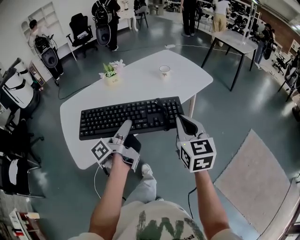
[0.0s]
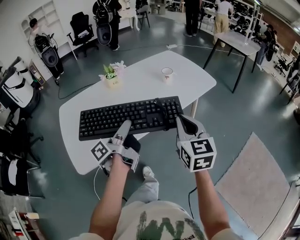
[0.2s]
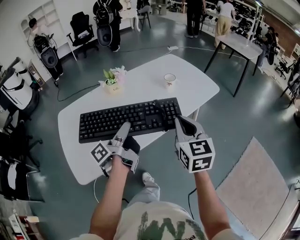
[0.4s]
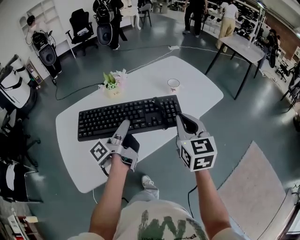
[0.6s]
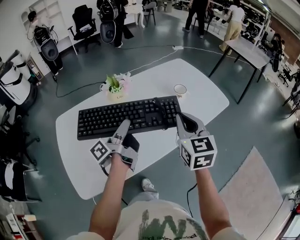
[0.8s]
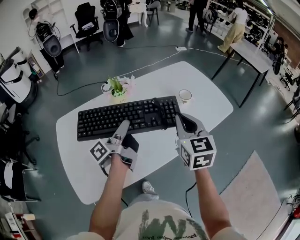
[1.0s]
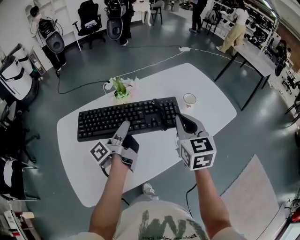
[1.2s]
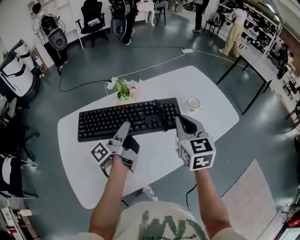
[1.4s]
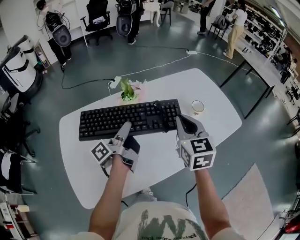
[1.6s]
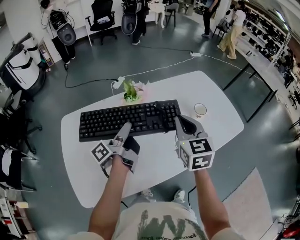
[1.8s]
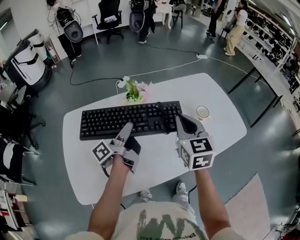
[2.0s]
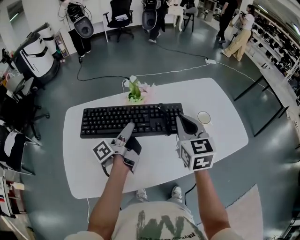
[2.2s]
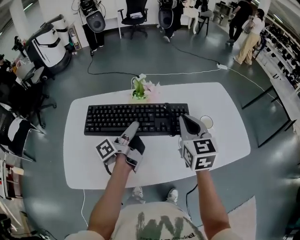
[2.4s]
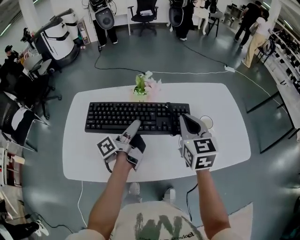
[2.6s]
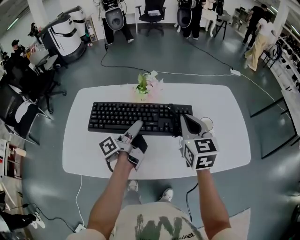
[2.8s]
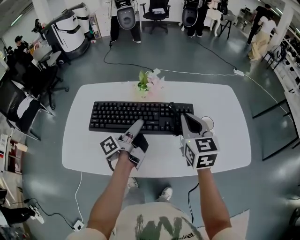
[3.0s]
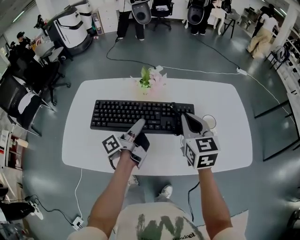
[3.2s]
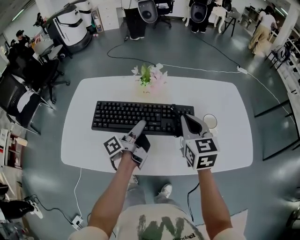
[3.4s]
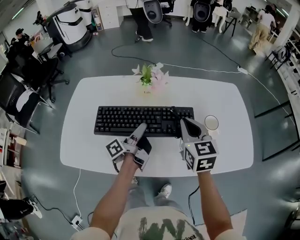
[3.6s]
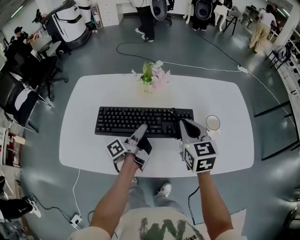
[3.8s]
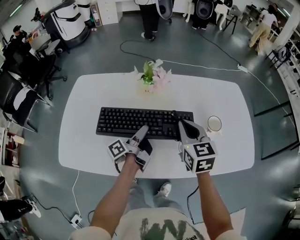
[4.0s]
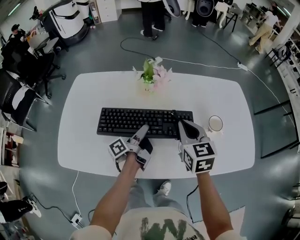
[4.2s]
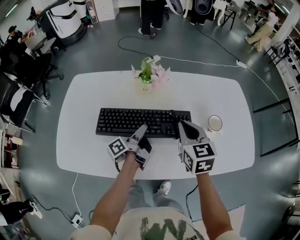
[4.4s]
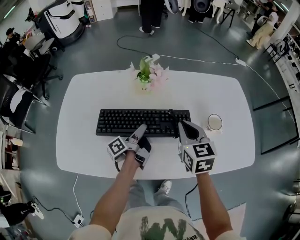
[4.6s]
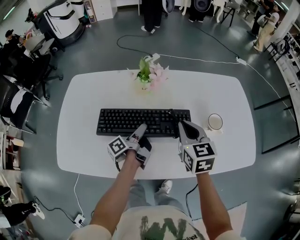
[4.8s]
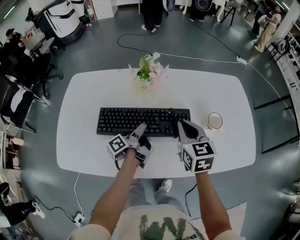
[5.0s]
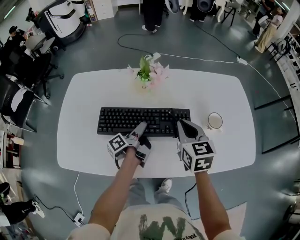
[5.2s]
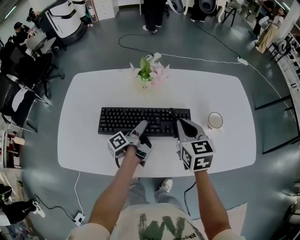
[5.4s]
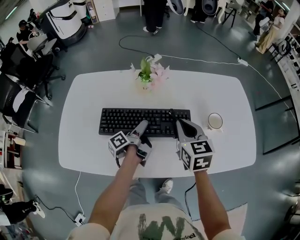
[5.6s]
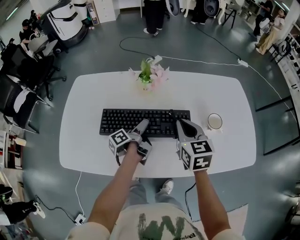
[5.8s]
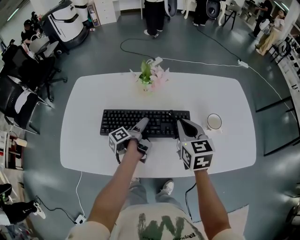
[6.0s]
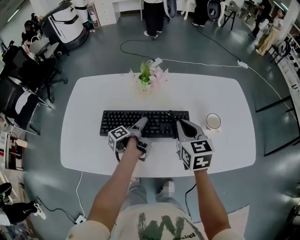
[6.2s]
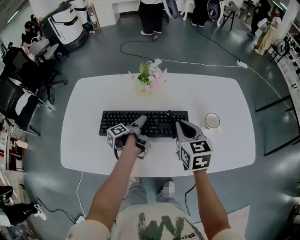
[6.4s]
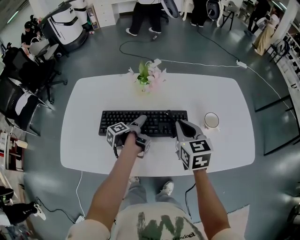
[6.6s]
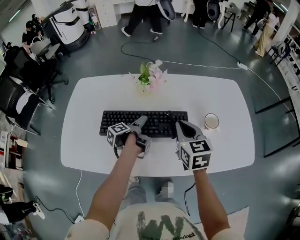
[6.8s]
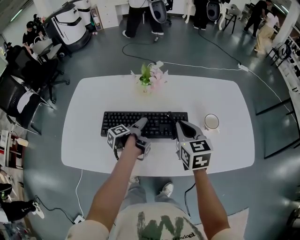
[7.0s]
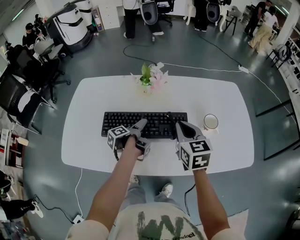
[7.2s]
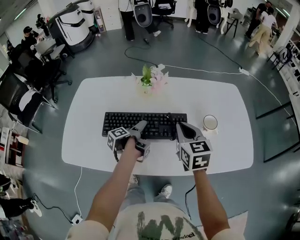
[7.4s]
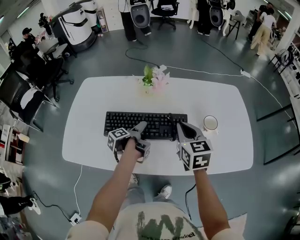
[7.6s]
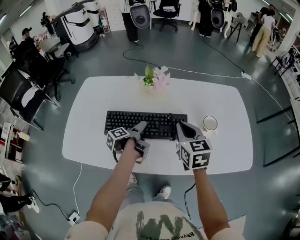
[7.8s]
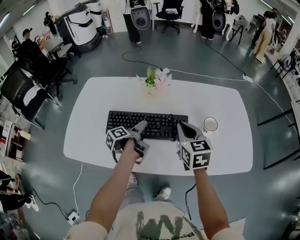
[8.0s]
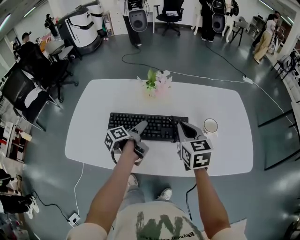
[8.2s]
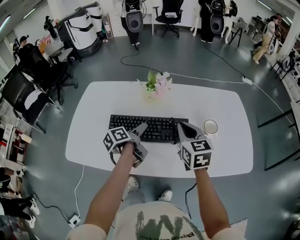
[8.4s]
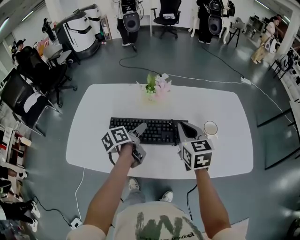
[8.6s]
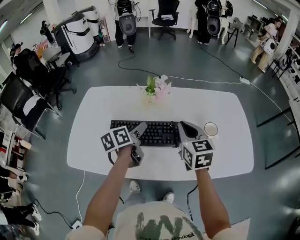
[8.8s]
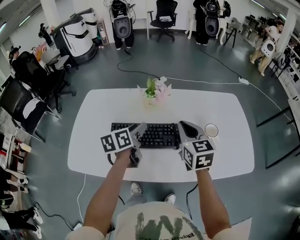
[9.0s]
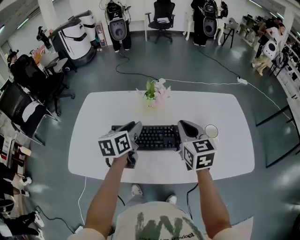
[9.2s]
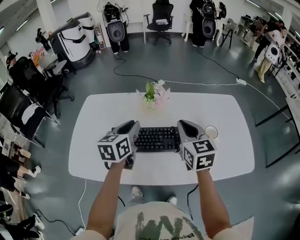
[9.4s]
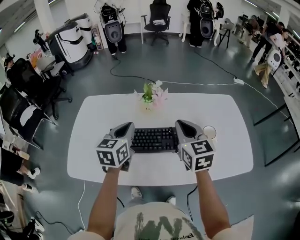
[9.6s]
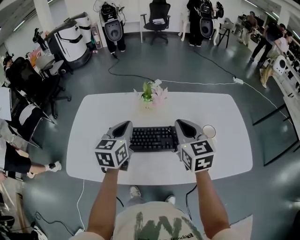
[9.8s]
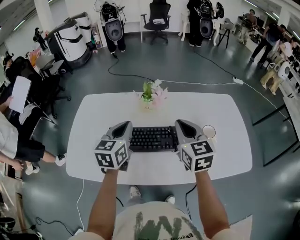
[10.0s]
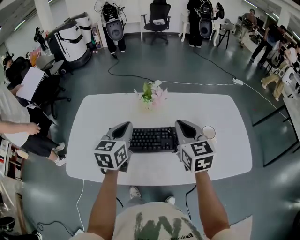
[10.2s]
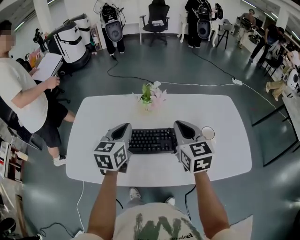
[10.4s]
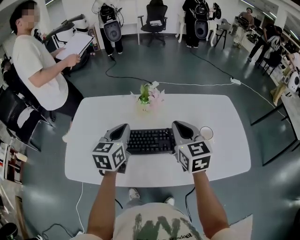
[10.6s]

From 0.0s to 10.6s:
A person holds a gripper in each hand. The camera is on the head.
From 0.0s to 1.6s: The right gripper moves roughly 35 cm.
From 1.6s to 3.0s: The right gripper moves some 5 cm, and swivels roughly 20 degrees.
From 3.0s to 4.6s: The right gripper is displaced downward by some 10 cm.
From 7.6s to 9.0s: The right gripper moves upward, some 5 cm.

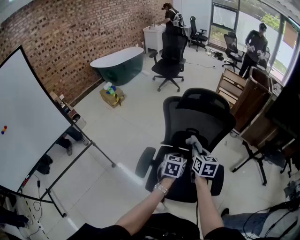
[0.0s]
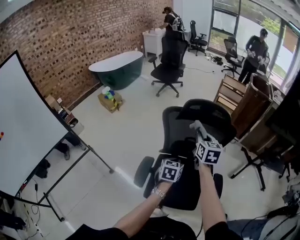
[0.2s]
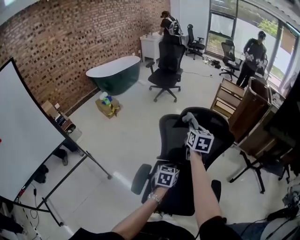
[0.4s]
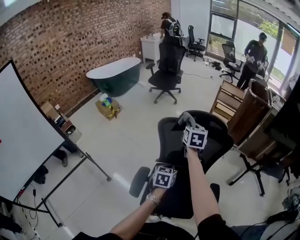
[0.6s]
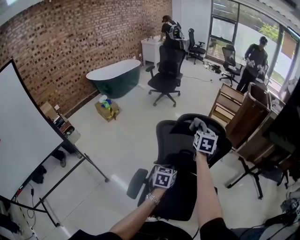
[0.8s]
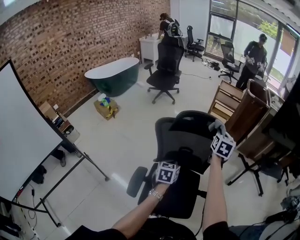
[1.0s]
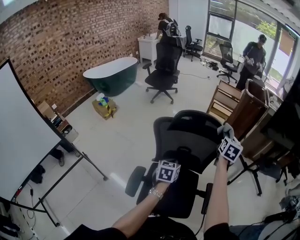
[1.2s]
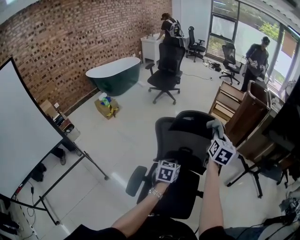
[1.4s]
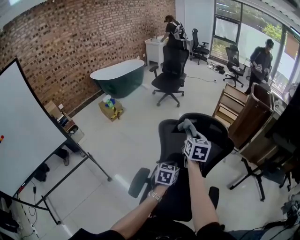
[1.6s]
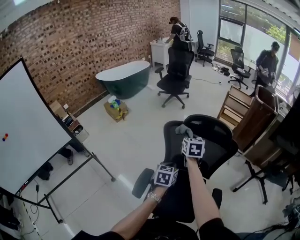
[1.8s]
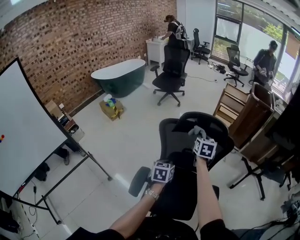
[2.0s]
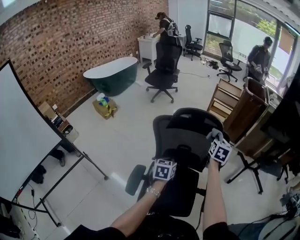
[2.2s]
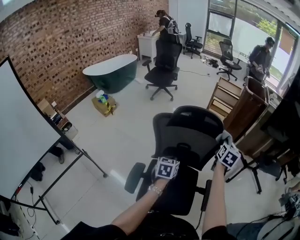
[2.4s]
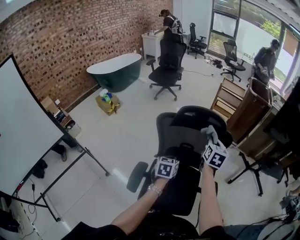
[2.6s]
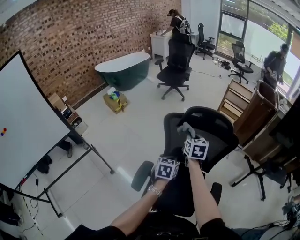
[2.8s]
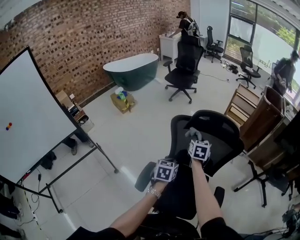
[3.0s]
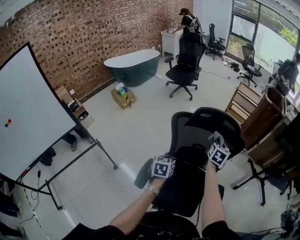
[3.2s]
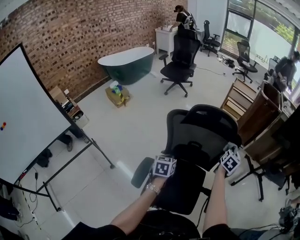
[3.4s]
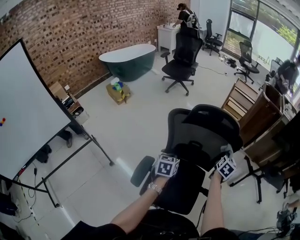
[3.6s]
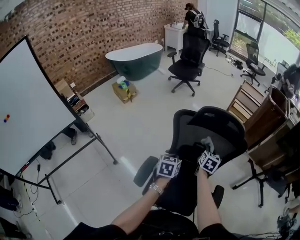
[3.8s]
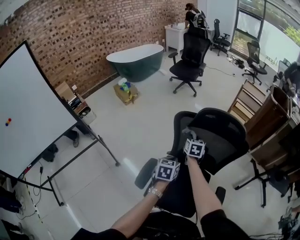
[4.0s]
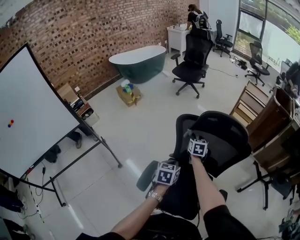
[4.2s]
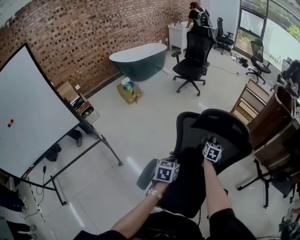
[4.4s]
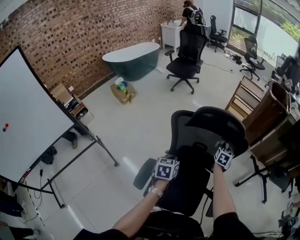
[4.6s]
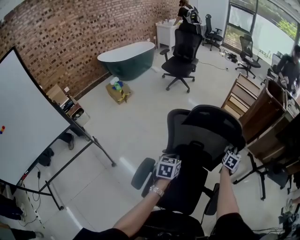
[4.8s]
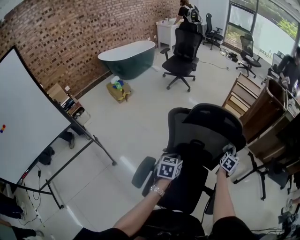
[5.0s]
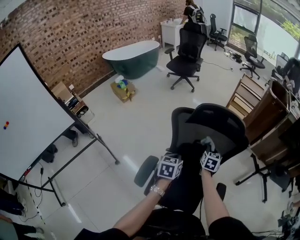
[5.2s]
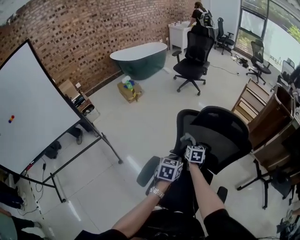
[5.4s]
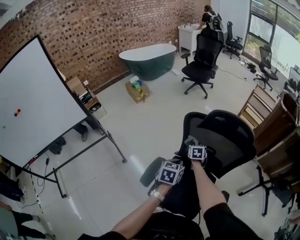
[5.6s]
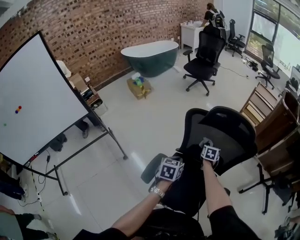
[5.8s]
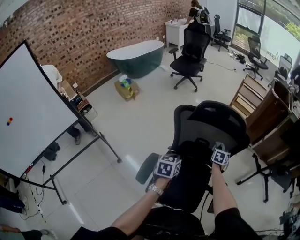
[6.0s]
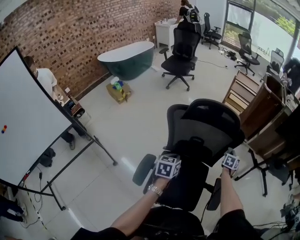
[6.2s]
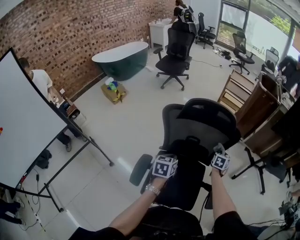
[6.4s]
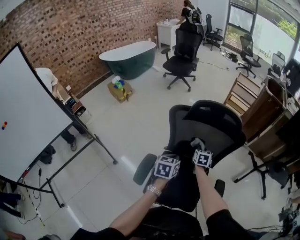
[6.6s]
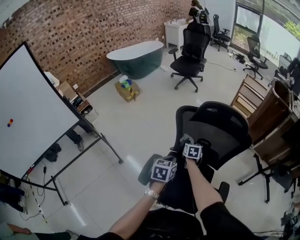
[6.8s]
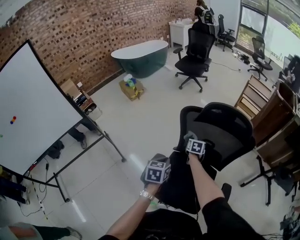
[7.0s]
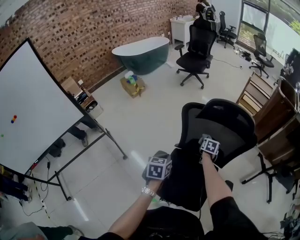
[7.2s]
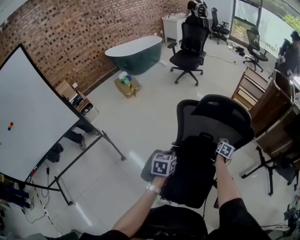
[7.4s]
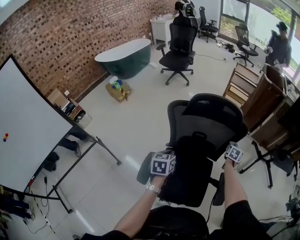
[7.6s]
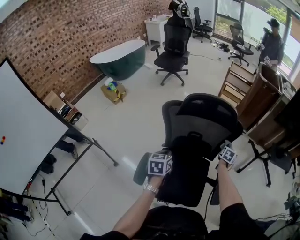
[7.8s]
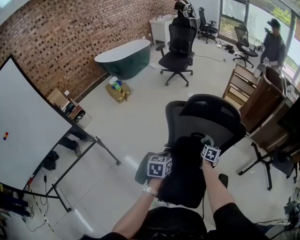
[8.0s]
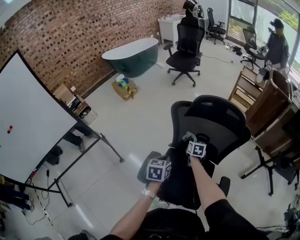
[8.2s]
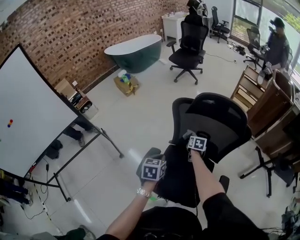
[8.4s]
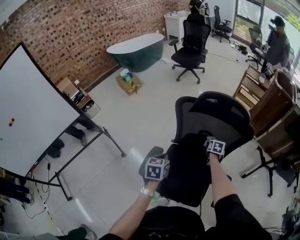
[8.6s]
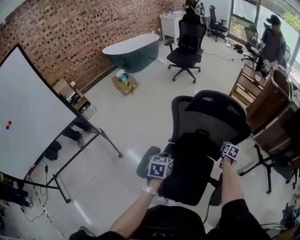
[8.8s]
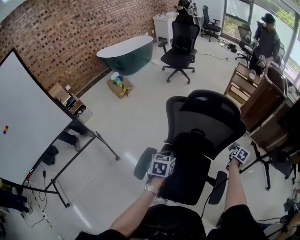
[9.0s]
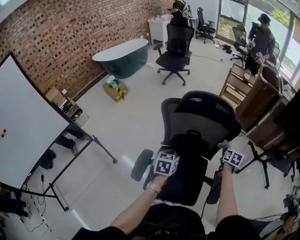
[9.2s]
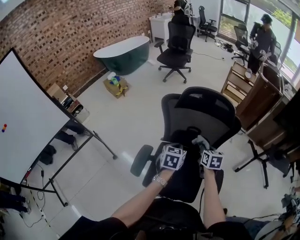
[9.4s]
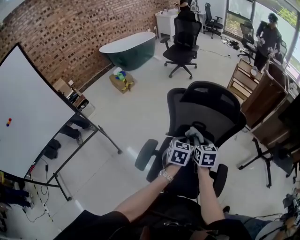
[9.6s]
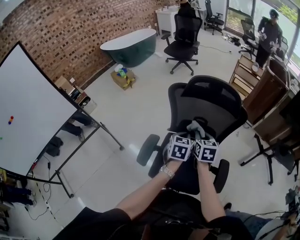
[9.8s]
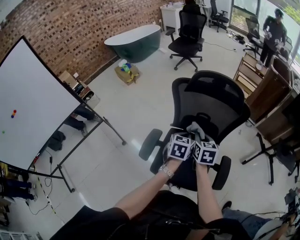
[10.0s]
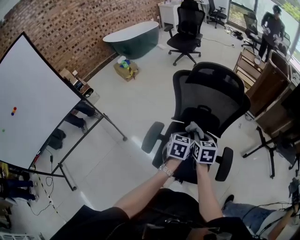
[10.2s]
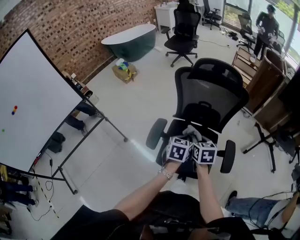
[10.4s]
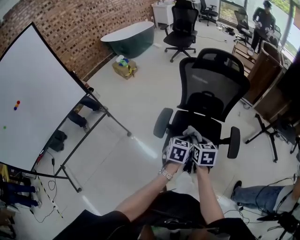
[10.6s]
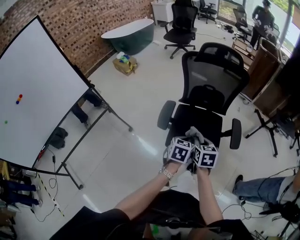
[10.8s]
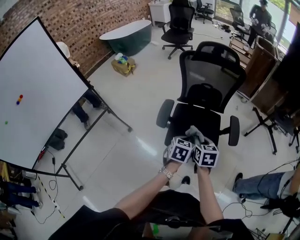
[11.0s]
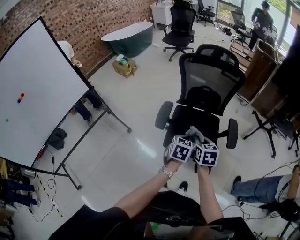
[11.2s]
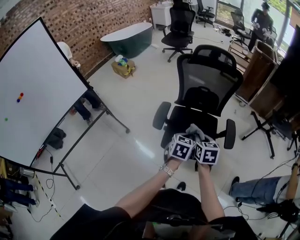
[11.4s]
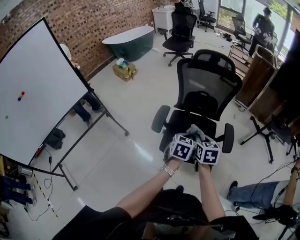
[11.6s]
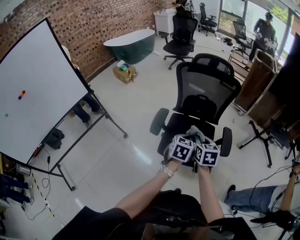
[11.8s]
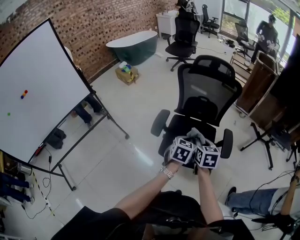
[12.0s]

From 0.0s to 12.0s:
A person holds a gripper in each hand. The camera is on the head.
From 0.0s to 1.6s: The left gripper shifts about 10 cm forward; the right gripper goes left and right, some 25 cm each way, reversing 2 times.
From 1.6s to 3.0s: The left gripper ends up about 5 cm from where it was. The right gripper heads downward, covering about 10 cm, and reaches some 25 cm to the right, then returns.
From 3.0s to 4.4s: The right gripper goes left and right, some 30 cm each way, reversing 2 times.
From 4.4s to 6.0s: The right gripper goes left and right, about 35 cm each way, reversing 2 times.
From 9.0s to 10.4s: The right gripper moves to the left and backward, about 50 cm, and rotates roughly 40 degrees. The left gripper travels backward by approximately 10 cm.
From 10.4s to 12.0s: The two grippers go some 15 cm backward.

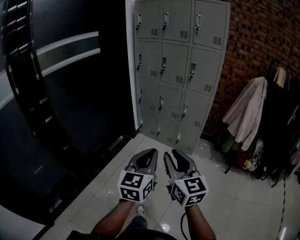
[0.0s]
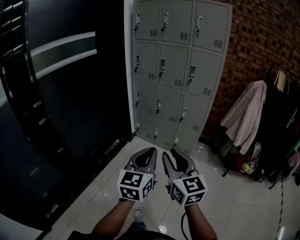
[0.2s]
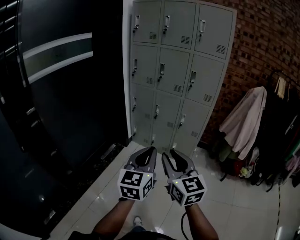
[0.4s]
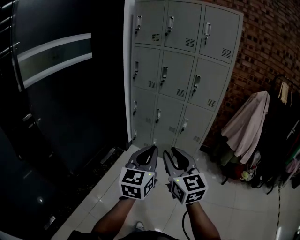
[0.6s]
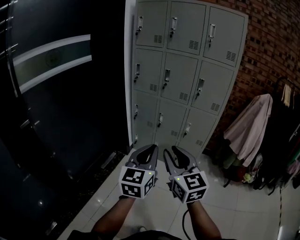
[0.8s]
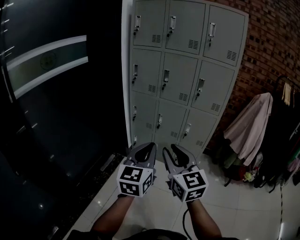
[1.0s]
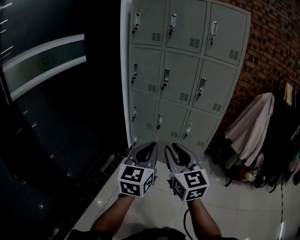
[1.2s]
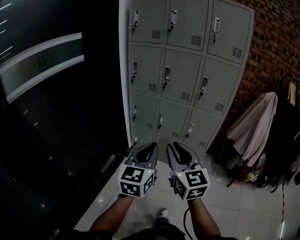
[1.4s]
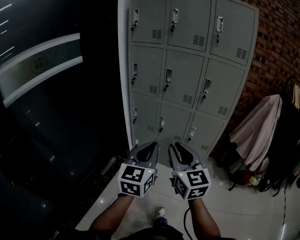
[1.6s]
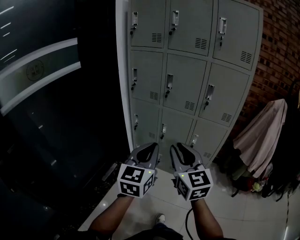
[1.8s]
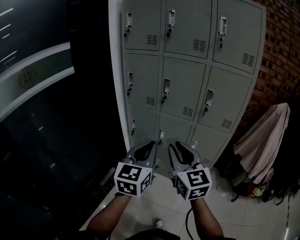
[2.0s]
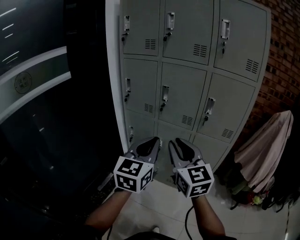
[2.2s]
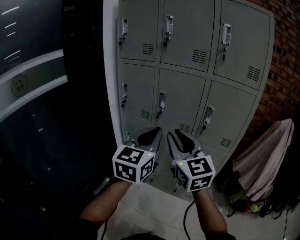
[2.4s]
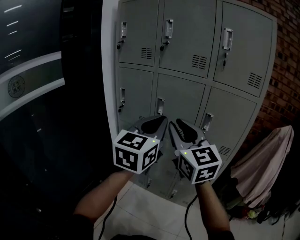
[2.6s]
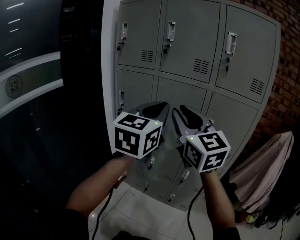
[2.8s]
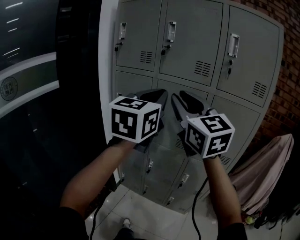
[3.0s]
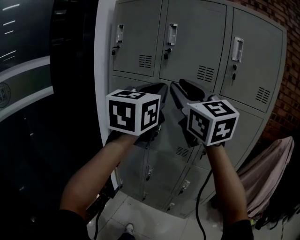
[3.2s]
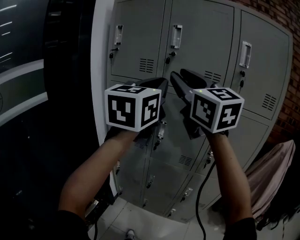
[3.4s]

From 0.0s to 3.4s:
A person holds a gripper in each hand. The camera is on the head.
From 0.0s to 1.6s: The grippers both shift forward by about 35 cm.
From 1.6s to 3.4s: Both grippers are carried forward, approximately 40 cm. The grippers both shift upward by roughly 35 cm. The right gripper rotates roughly 20 degrees.
